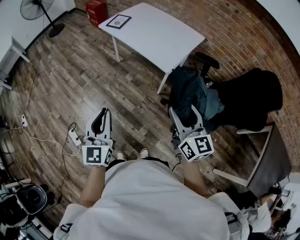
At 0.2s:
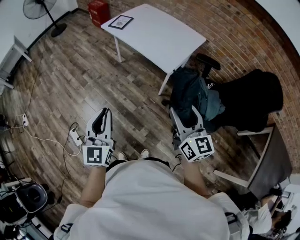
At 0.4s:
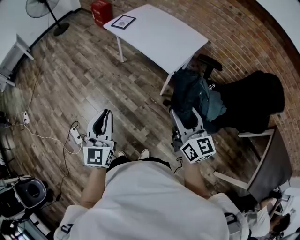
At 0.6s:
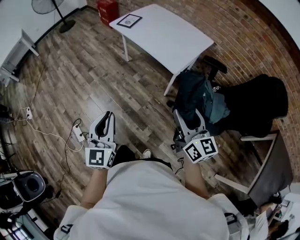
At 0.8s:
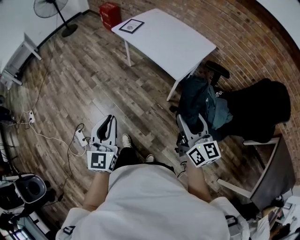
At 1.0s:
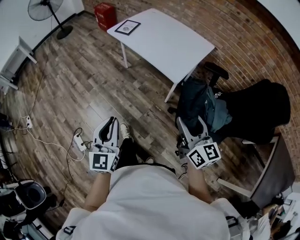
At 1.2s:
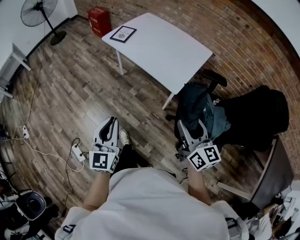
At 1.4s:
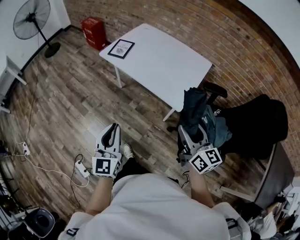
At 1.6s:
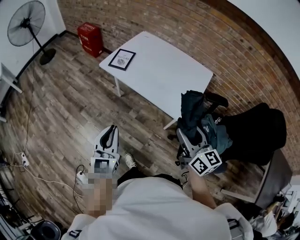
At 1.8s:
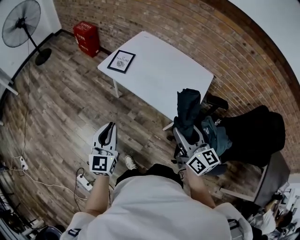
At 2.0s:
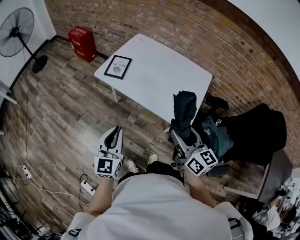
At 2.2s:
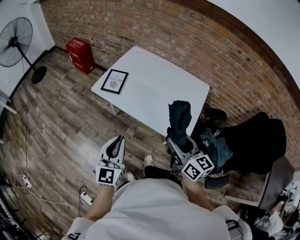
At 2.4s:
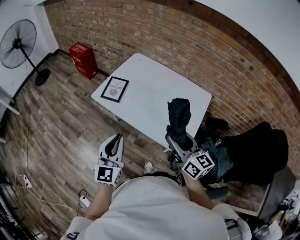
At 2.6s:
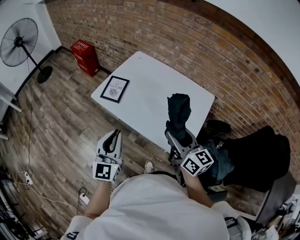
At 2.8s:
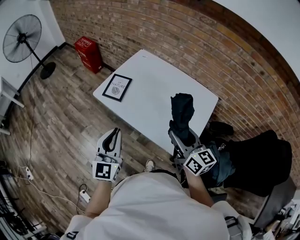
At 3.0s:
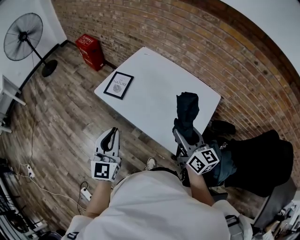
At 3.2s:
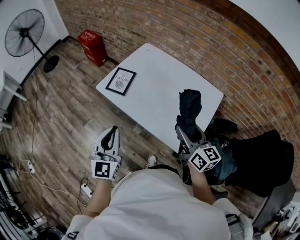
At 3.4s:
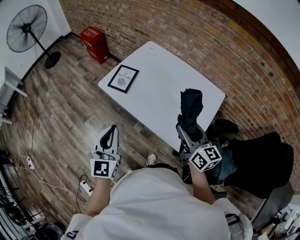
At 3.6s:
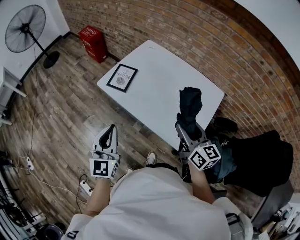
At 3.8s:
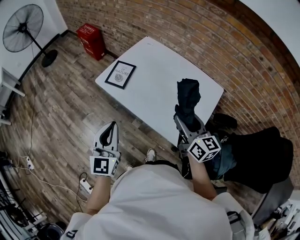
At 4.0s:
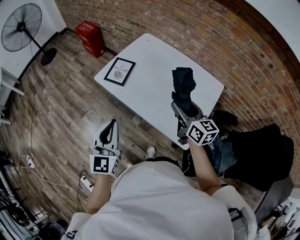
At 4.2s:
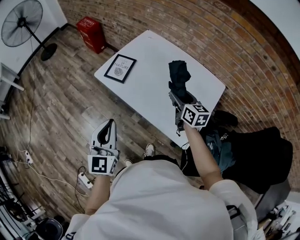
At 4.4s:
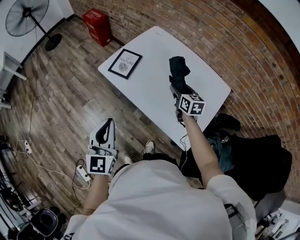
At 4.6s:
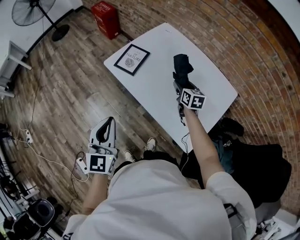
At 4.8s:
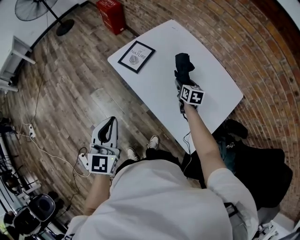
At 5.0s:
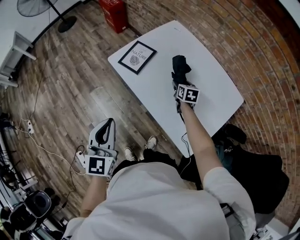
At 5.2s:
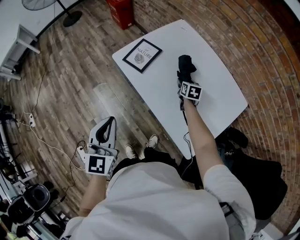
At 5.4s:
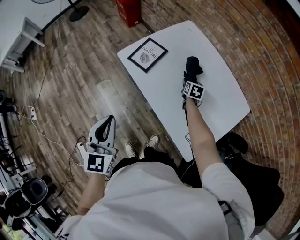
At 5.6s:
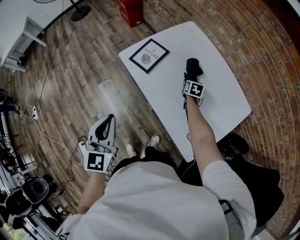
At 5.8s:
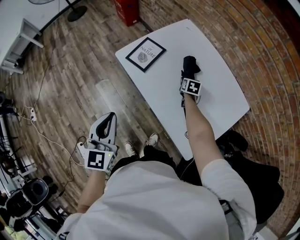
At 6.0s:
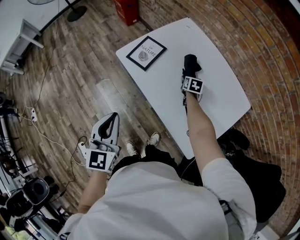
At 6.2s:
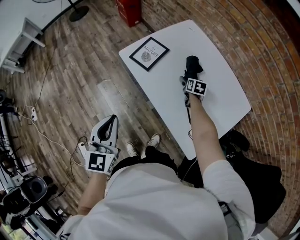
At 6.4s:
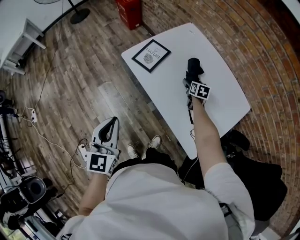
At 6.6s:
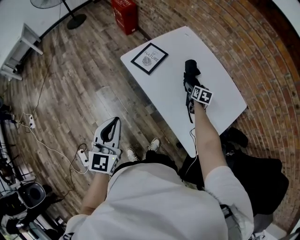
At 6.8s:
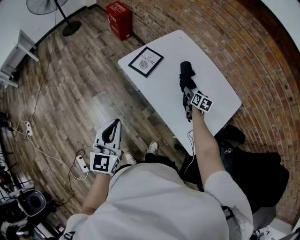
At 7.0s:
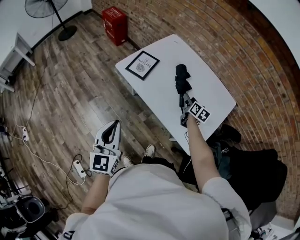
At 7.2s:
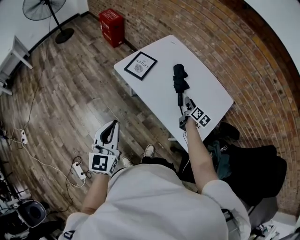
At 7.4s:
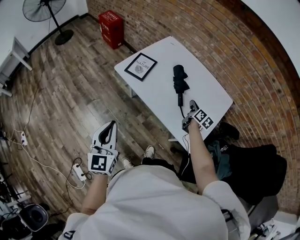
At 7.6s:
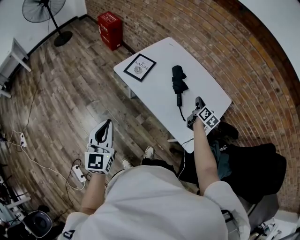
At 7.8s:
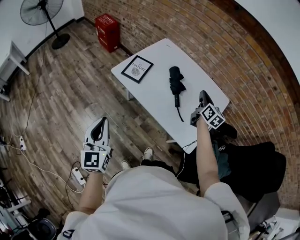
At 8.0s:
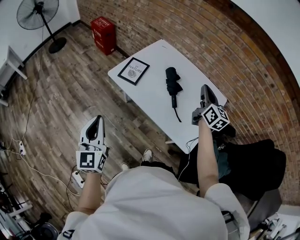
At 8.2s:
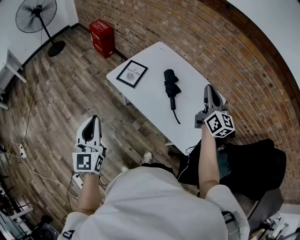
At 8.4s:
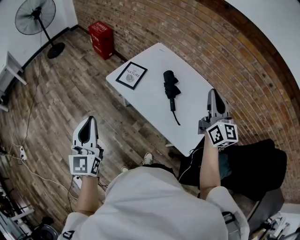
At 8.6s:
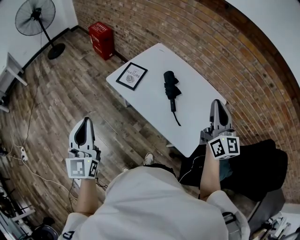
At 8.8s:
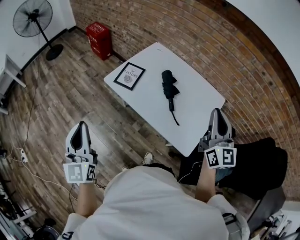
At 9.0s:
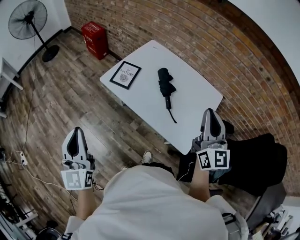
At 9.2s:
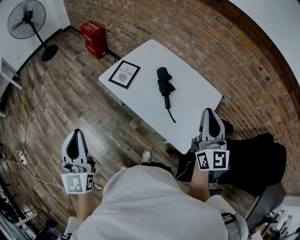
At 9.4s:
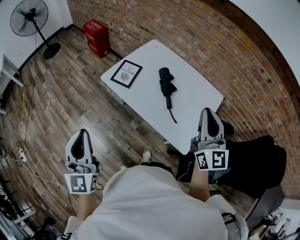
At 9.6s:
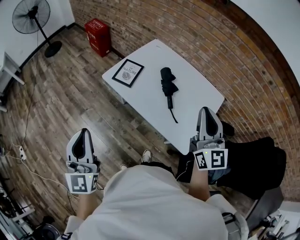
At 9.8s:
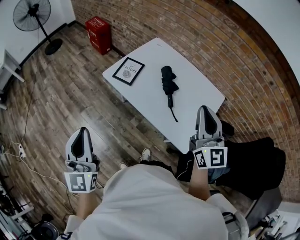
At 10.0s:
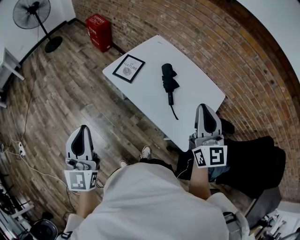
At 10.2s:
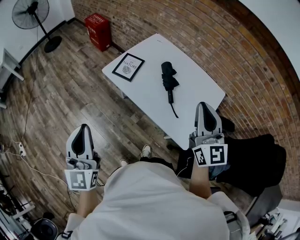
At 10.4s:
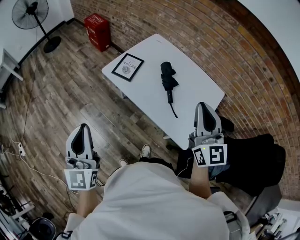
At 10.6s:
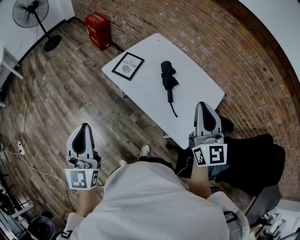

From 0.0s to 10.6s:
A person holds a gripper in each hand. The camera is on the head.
From 0.0s to 1.6s: The two grippers go about 25 cm forward.
From 1.6s to 3.0s: Both grippers travel together forward, approximately 20 cm.
From 3.0s to 4.6s: The right gripper is displaced forward and downward by roughly 30 cm, and turns by approximately 30 degrees.
From 4.6s to 6.0s: The right gripper travels downward and forward by roughly 15 cm.
From 6.0s to 7.6s: The left gripper travels to the left and backward by about 10 cm. Meanwhile the right gripper travels upward, backward and to the right by approximately 25 cm, changes its angle by some 40 degrees, and closes.
From 7.6s to 9.0s: The left gripper moves upward, about 10 cm; the right gripper goes about 30 cm upward and backward, and swivels about 40 degrees.
From 9.0s to 10.6s: The grippers stay close to where they were, moving slightly.

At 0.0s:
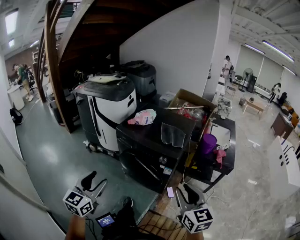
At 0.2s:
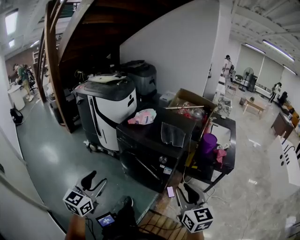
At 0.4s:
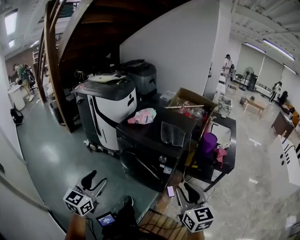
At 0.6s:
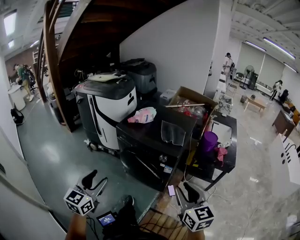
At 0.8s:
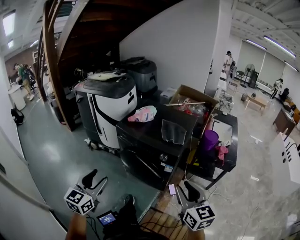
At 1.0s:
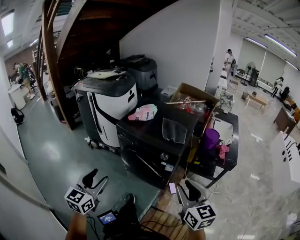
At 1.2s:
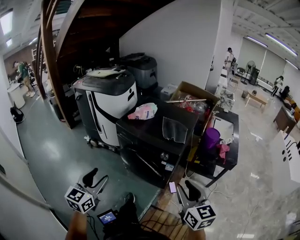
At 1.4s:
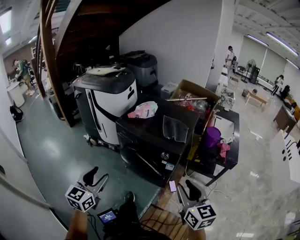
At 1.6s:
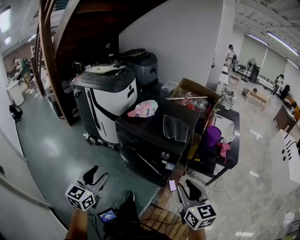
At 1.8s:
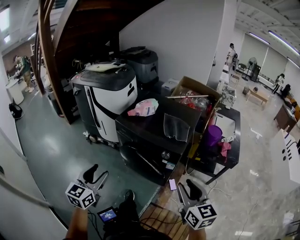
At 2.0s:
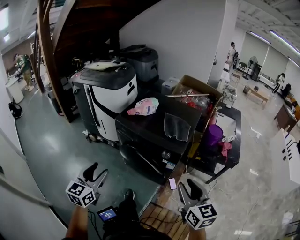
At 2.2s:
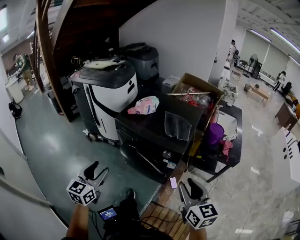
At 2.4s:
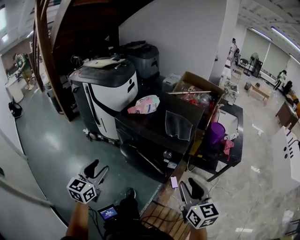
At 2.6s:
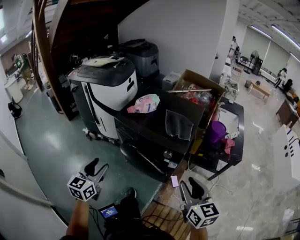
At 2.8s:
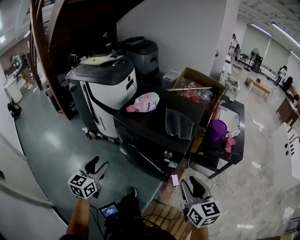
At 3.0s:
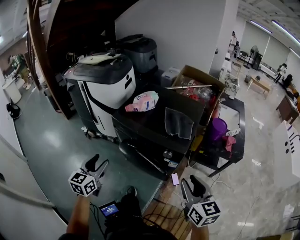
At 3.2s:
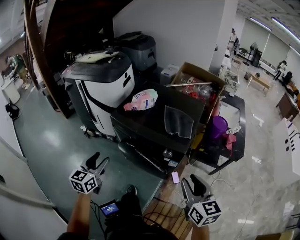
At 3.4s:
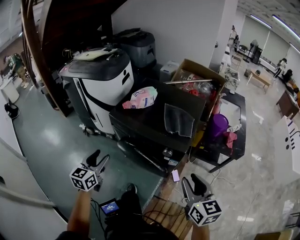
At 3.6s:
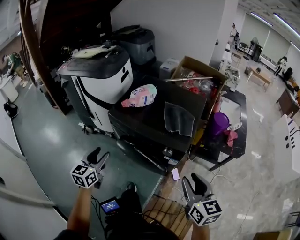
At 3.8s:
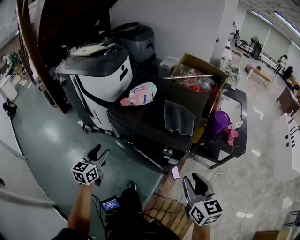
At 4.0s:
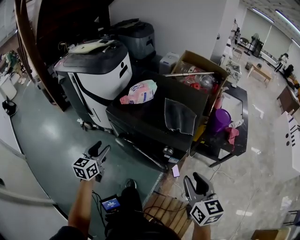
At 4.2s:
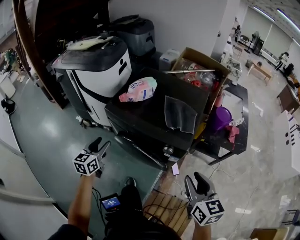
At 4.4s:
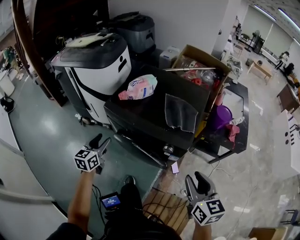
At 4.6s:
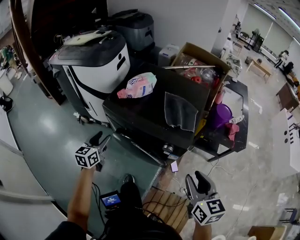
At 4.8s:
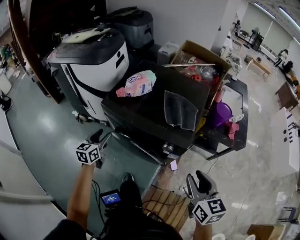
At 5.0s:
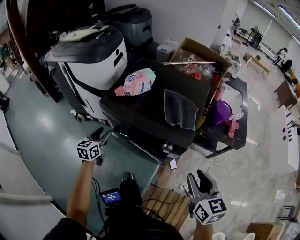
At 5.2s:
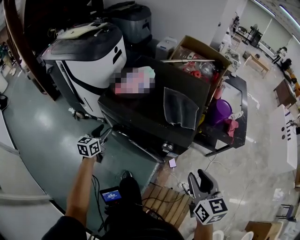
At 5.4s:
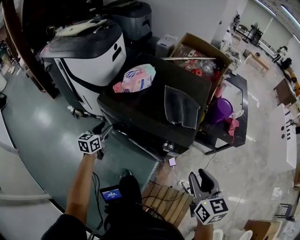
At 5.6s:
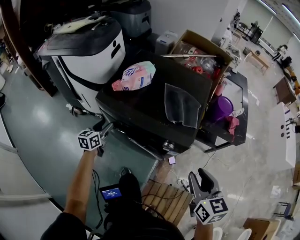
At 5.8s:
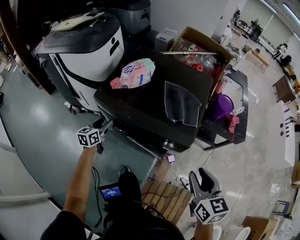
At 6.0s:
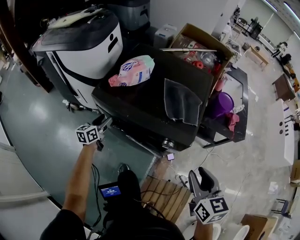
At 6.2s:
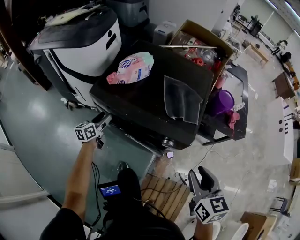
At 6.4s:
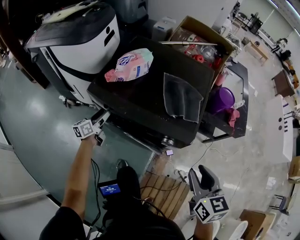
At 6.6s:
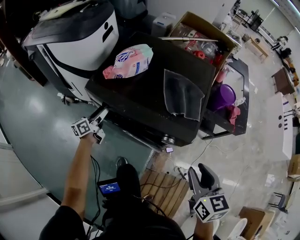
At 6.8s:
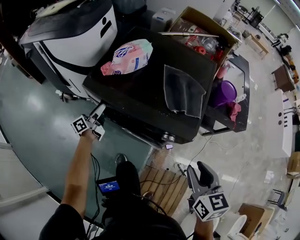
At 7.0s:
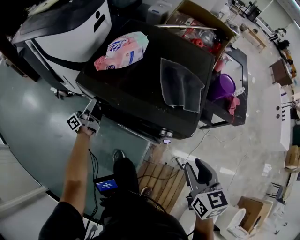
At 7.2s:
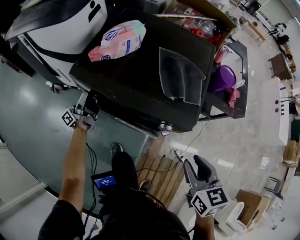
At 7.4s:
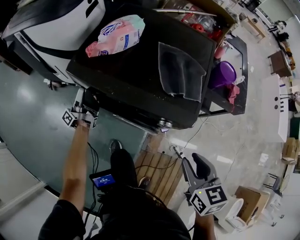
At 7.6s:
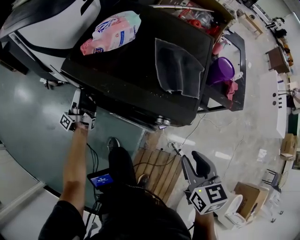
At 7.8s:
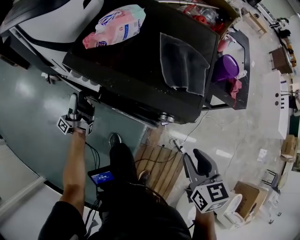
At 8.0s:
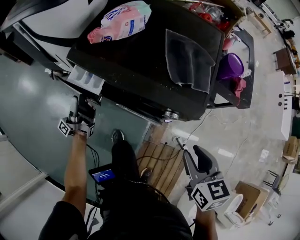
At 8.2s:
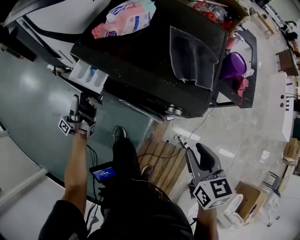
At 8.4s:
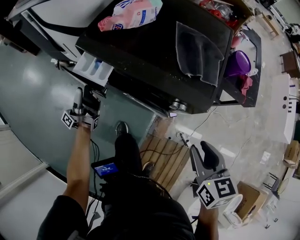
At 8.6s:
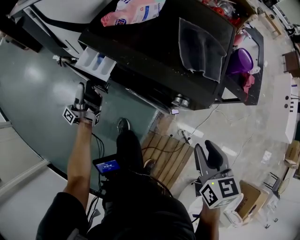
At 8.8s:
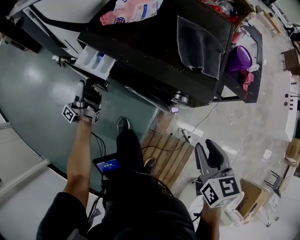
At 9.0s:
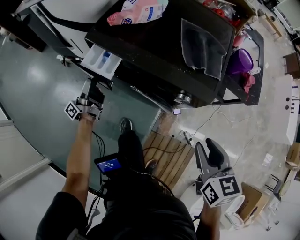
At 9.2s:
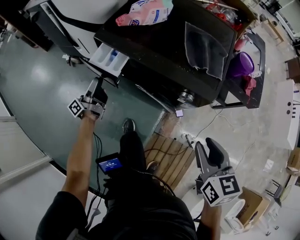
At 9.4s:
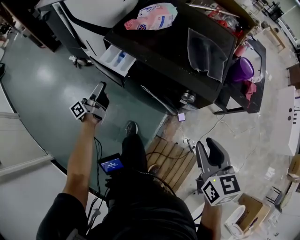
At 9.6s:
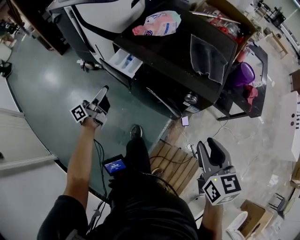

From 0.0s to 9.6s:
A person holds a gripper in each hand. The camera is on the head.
From 0.0s to 1.6s: The left gripper goes roughly 5 cm forward.
From 1.6s to 3.2s: The right gripper heads forward, covering some 10 cm. The left gripper travels forward and downward by approximately 15 cm.
From 3.2s to 4.8s: The right gripper goes about 5 cm forward. The left gripper heads forward and downward, covering about 20 cm.
From 4.8s to 6.4s: The right gripper changes place by about 5 cm; the left gripper goes approximately 20 cm forward and downward, and turns by roughly 30 degrees.
From 6.4s to 8.0s: The left gripper is displaced backward by some 5 cm, and tips its fingers upward by roughly 40 degrees, while the right gripper travels downward by some 5 cm.
From 8.0s to 9.6s: Both grippers travel together backward and upward, about 10 cm. The left gripper turns by approximately 30 degrees.

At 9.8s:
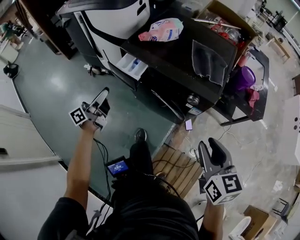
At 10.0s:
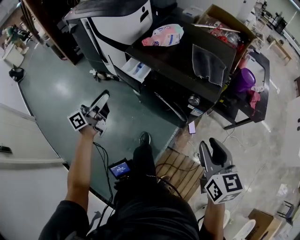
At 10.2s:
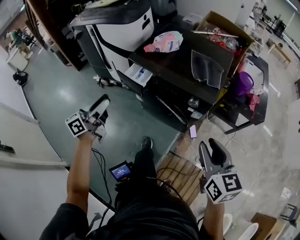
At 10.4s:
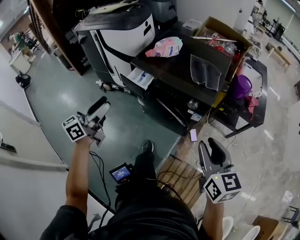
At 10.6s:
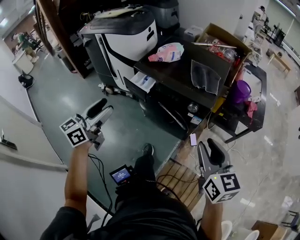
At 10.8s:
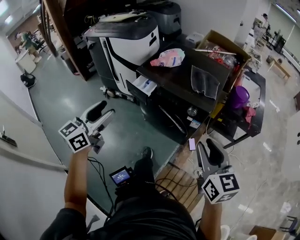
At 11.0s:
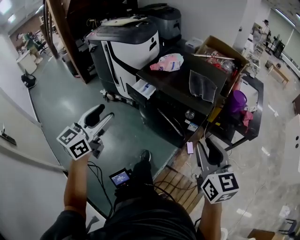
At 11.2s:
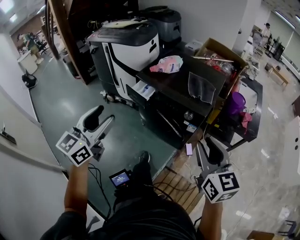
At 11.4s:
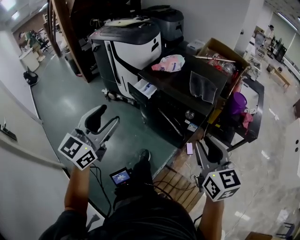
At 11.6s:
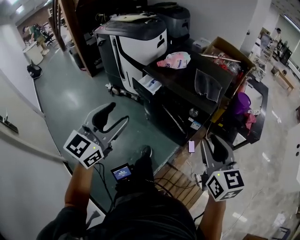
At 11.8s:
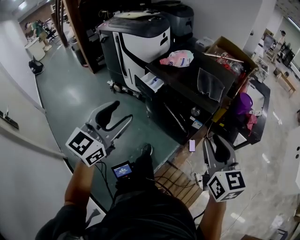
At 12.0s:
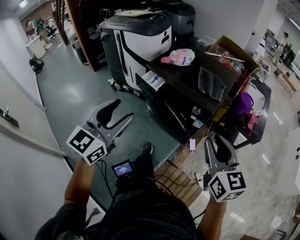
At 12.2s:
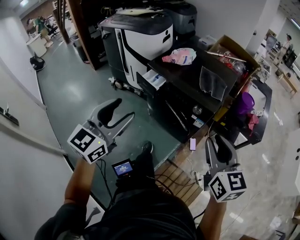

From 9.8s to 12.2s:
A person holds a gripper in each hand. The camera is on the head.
From 9.8s to 11.0s: The right gripper moves upward and backward, roughly 15 cm; the left gripper shifts about 30 cm upward and backward, and rolls clockwise, seen from behind, by roughly 50 degrees.
From 11.0s to 12.2s: The left gripper moves to the right, about 5 cm.

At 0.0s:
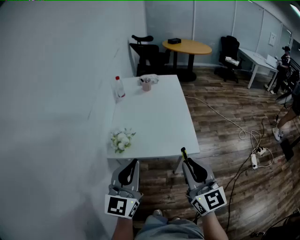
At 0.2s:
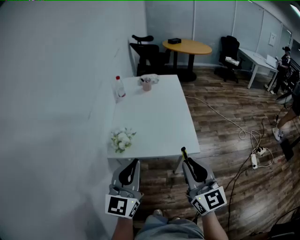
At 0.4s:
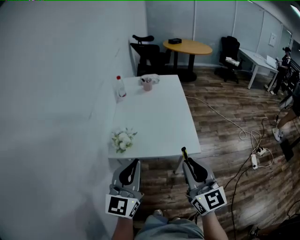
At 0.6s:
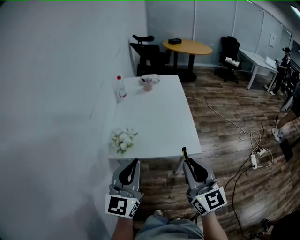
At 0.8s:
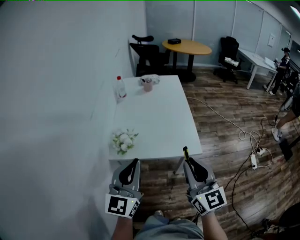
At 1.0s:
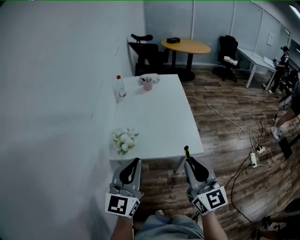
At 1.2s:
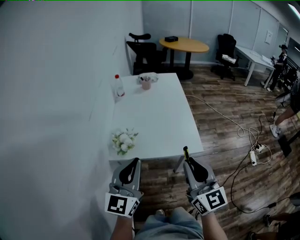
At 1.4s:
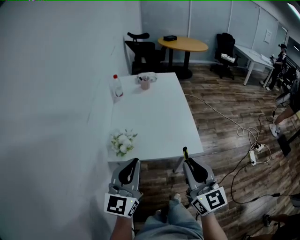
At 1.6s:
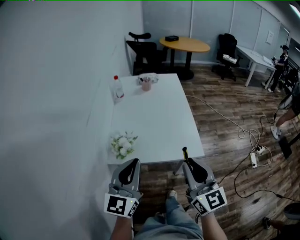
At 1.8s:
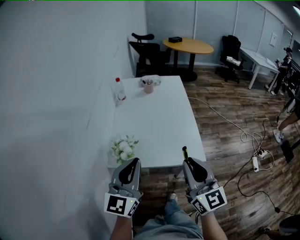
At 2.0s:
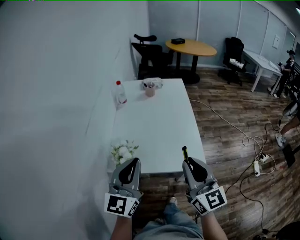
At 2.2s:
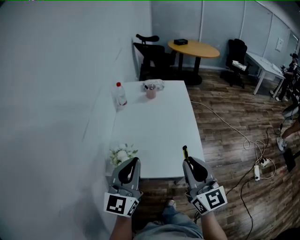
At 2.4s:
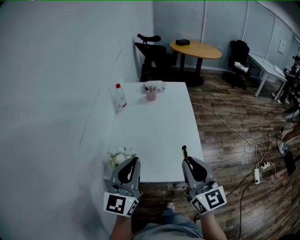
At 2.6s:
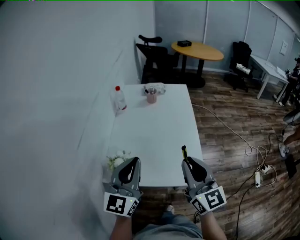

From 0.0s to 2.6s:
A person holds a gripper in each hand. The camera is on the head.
From 0.0s to 1.2s: The grippers stay close to where they were, moving slightly.
From 1.2s to 2.6s: Both grippers move forward, approximately 15 cm.
